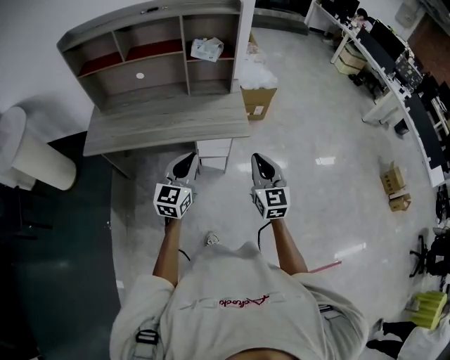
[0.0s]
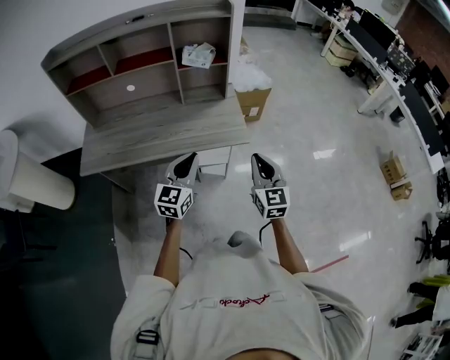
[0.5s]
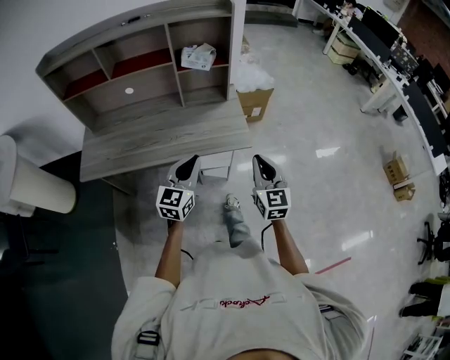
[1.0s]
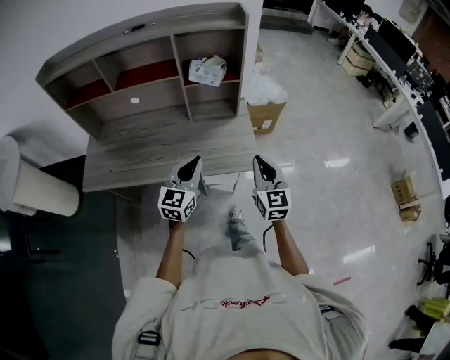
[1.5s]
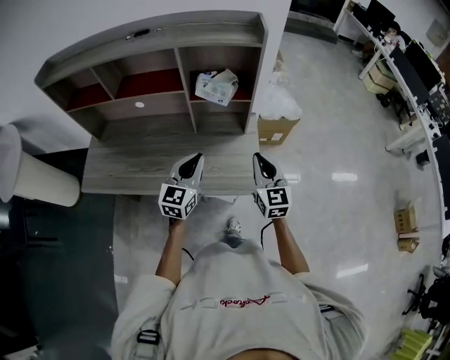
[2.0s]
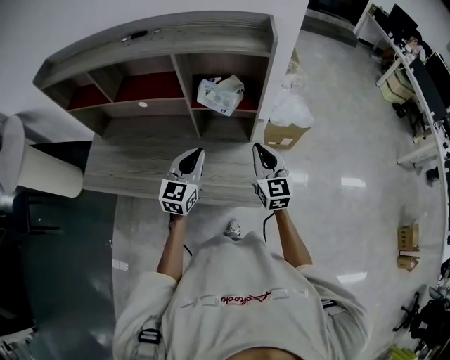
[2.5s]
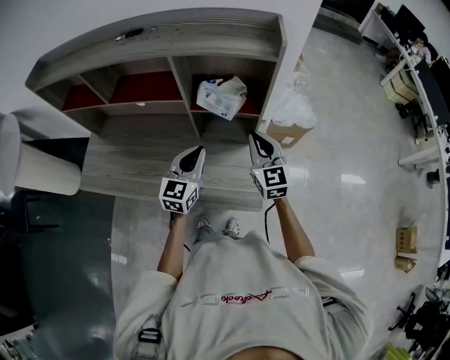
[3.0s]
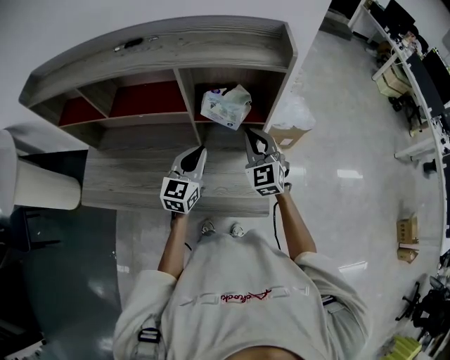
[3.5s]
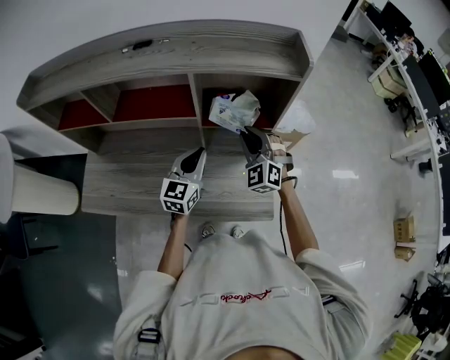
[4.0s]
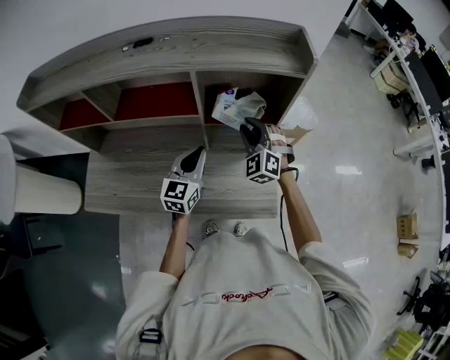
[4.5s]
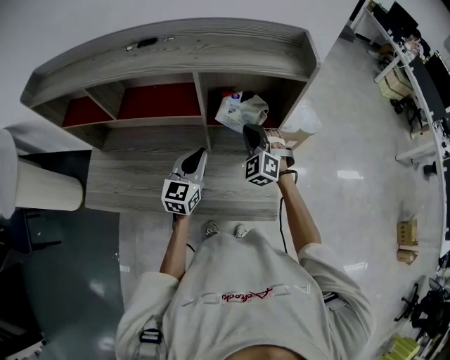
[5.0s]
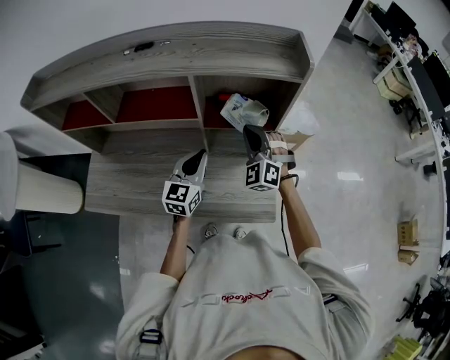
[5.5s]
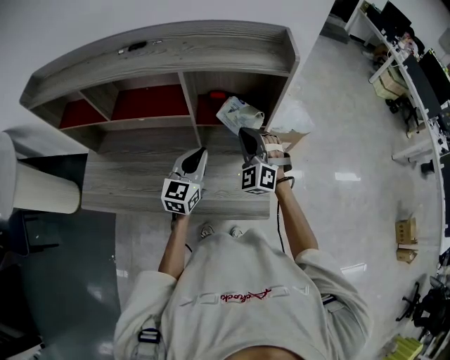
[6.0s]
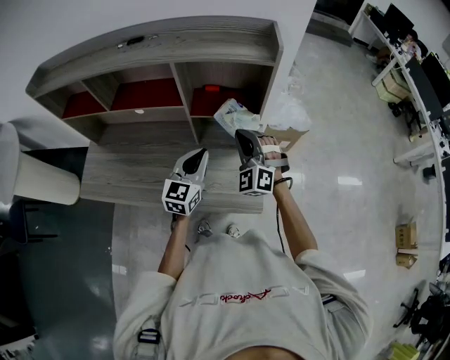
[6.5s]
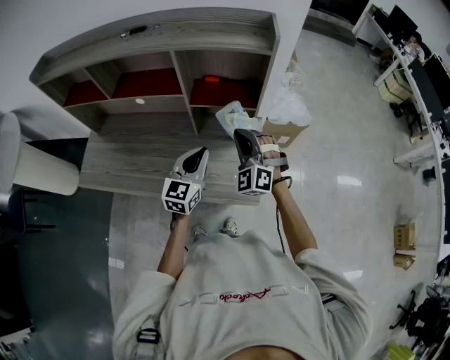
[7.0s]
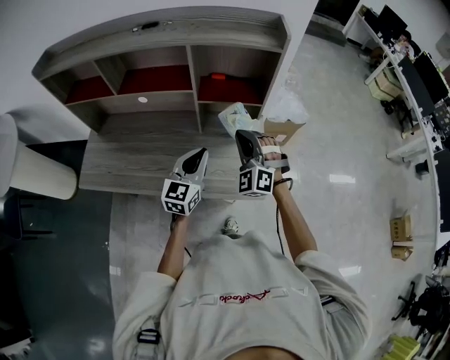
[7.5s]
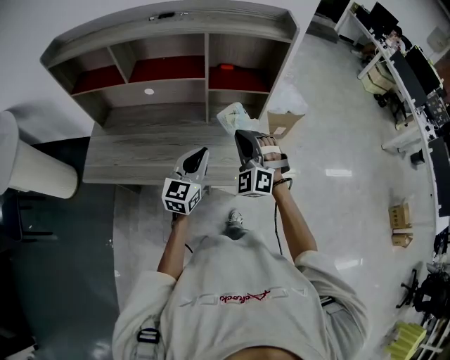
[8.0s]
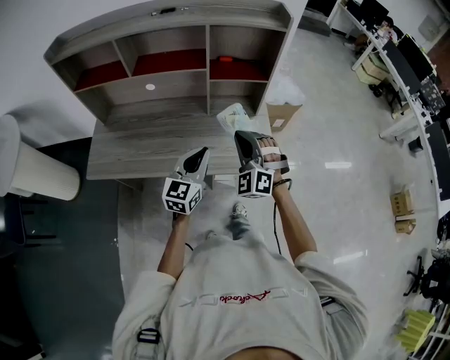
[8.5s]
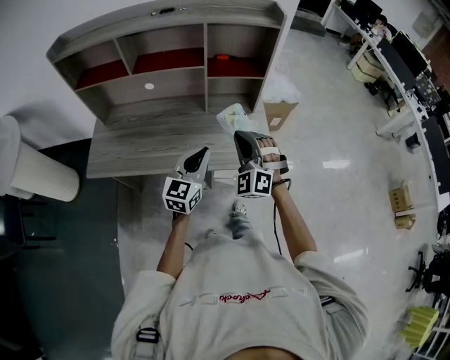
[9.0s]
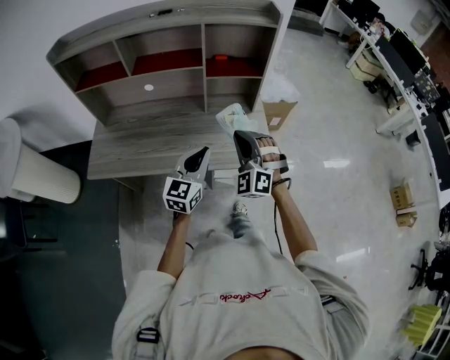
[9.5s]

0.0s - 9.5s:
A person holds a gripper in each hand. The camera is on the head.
0.0s - 2.0s: Both grippers travel together forward, some 30 cm.
2.0s - 4.0s: The left gripper travels forward by some 15 cm; the right gripper shifts some 25 cm forward and to the left, and twists approximately 50 degrees counterclockwise, seen from behind.
4.0s - 5.5s: The grippers stay close to where they were, moving slightly.
5.5s - 7.5s: The two grippers go about 10 cm backward.
7.5s - 9.5s: The grippers both shift backward by about 15 cm.

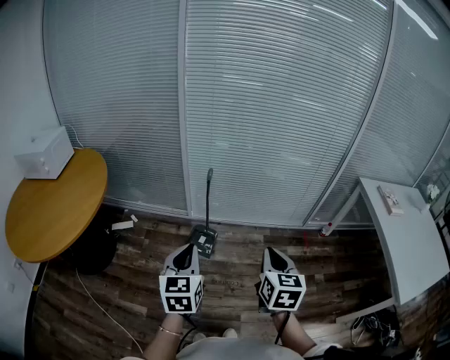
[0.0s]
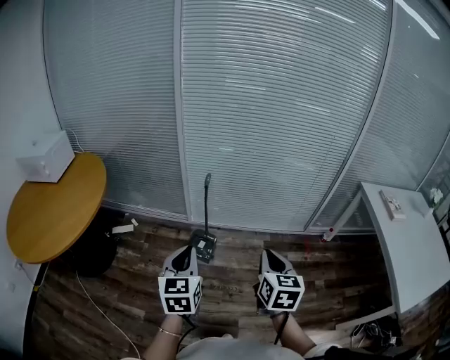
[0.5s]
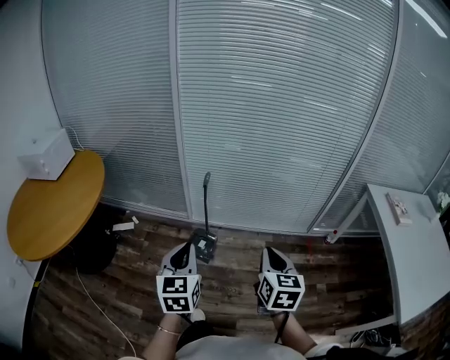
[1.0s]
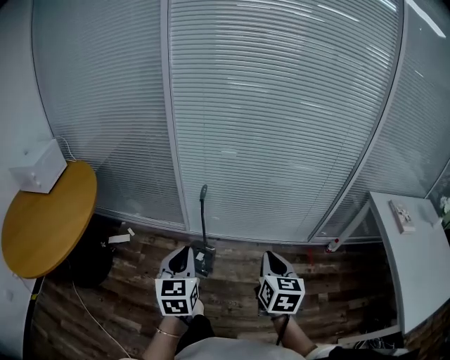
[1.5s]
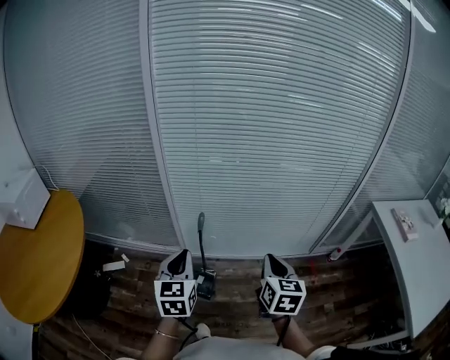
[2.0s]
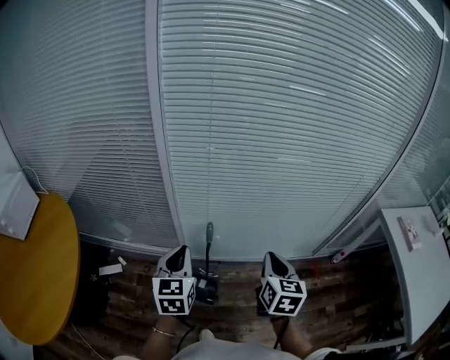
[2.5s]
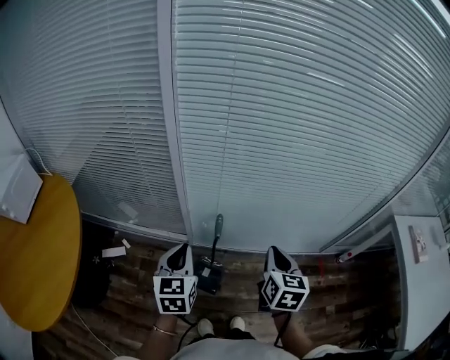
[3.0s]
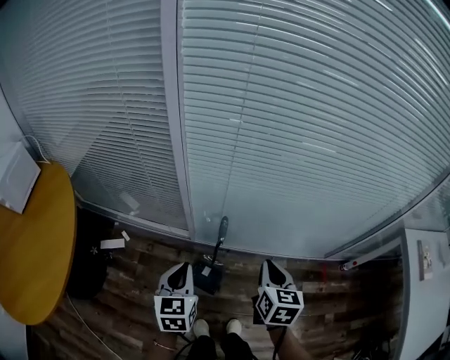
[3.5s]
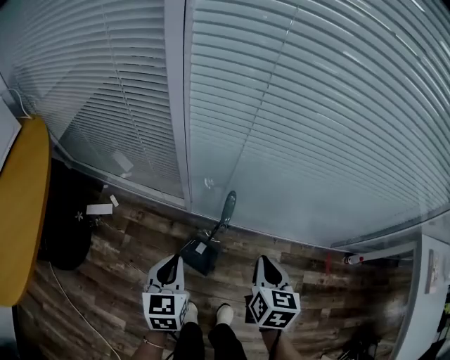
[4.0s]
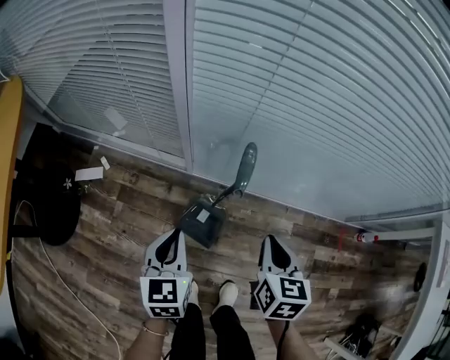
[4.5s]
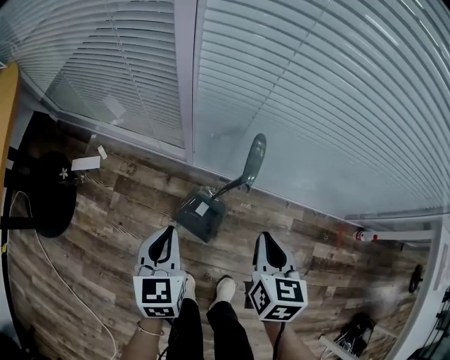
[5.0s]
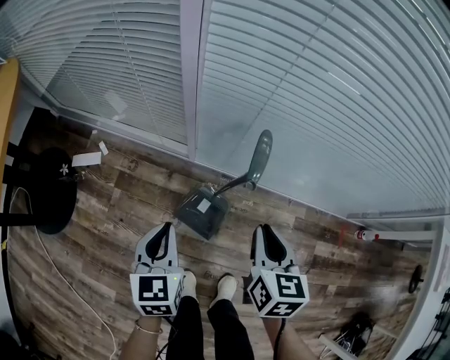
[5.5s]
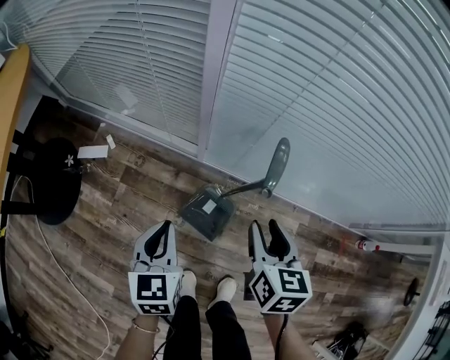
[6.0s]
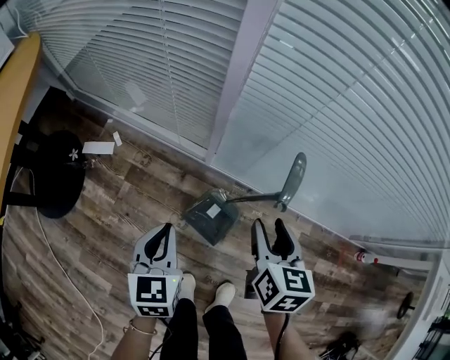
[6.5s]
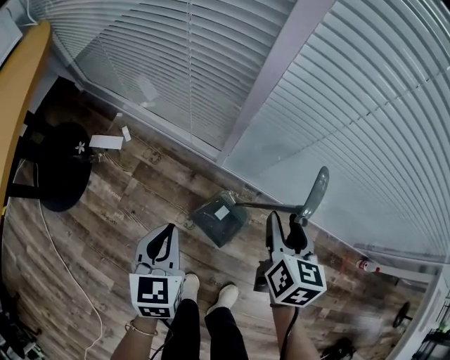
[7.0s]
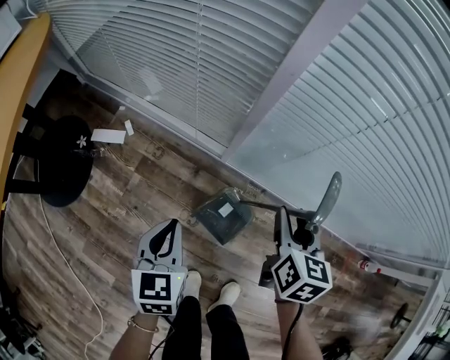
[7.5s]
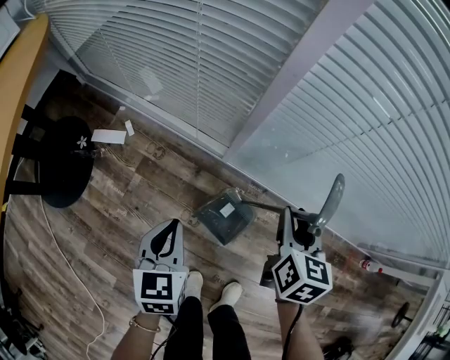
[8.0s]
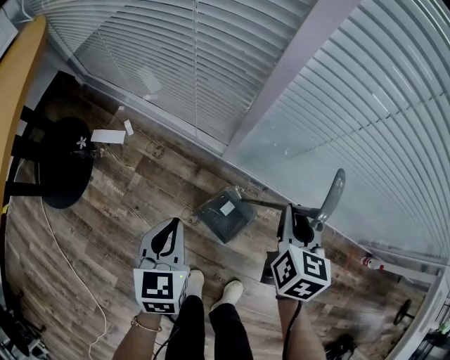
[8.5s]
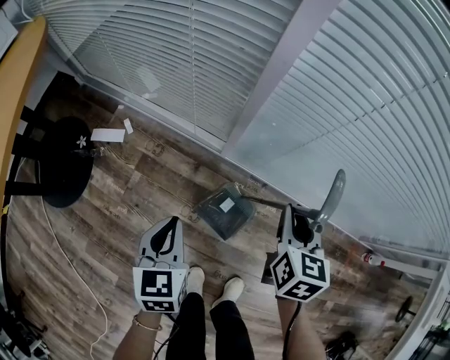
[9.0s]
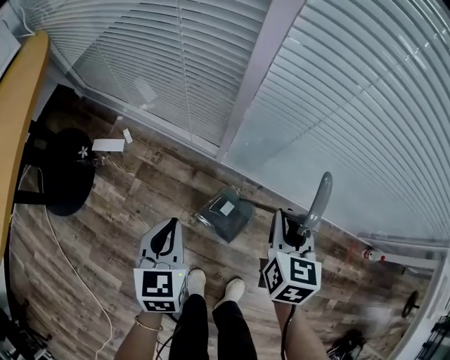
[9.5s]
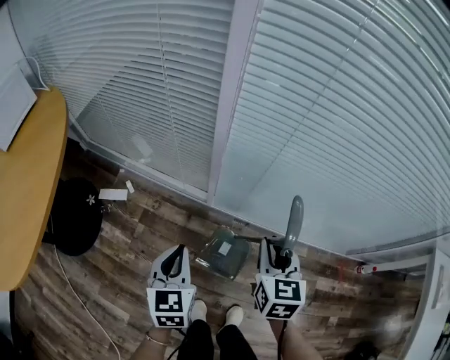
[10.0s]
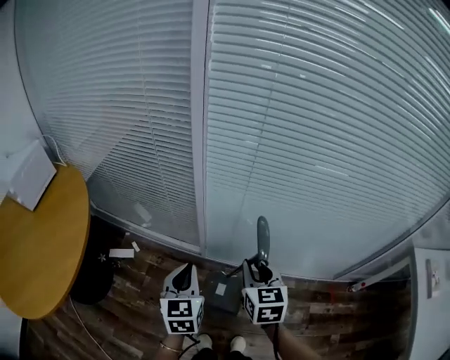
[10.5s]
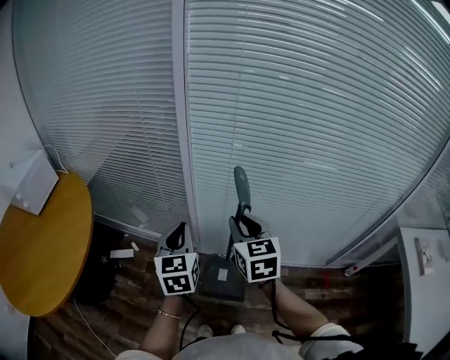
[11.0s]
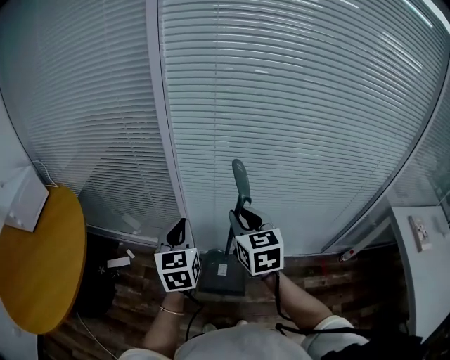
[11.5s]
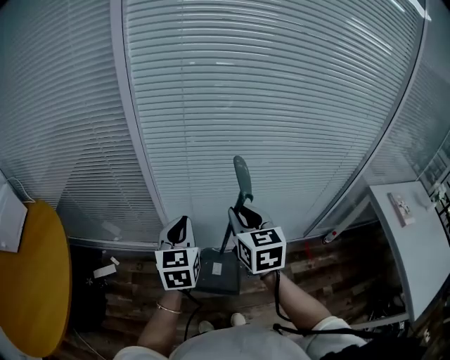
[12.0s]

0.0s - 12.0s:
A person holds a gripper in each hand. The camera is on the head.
0.0s - 2.0s: The grippers both shift forward by approximately 25 cm.
2.0s - 4.0s: The left gripper travels downward by roughly 25 cm, while the right gripper moves downward, forward and to the left, roughly 25 cm.
4.0s - 6.0s: Both grippers travel together downward and to the left, about 10 cm. The right gripper opens up.
6.0s - 8.0s: The right gripper moves forward, approximately 10 cm; the left gripper travels to the left by roughly 5 cm.
8.0s - 10.0s: The right gripper is displaced upward and backward by some 10 cm; the left gripper goes approximately 10 cm upward.
10.0s - 12.0s: The left gripper is displaced upward and to the right by about 30 cm, and turns by approximately 30 degrees, while the right gripper heads upward, covering about 30 cm.

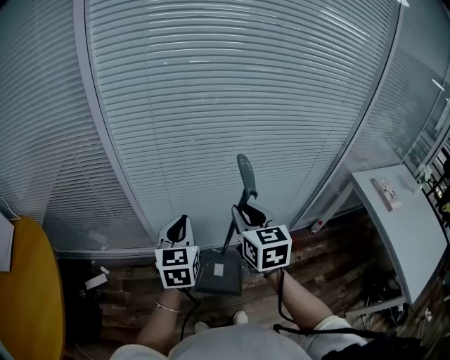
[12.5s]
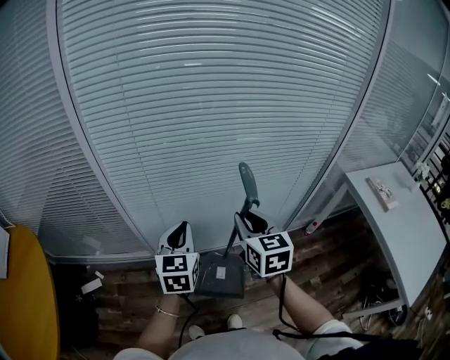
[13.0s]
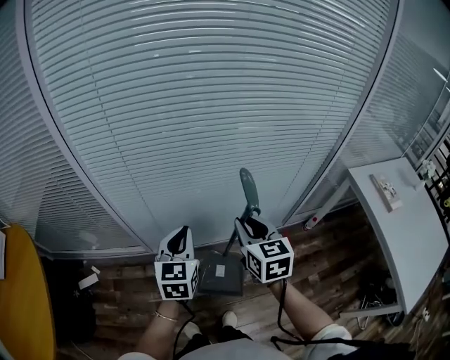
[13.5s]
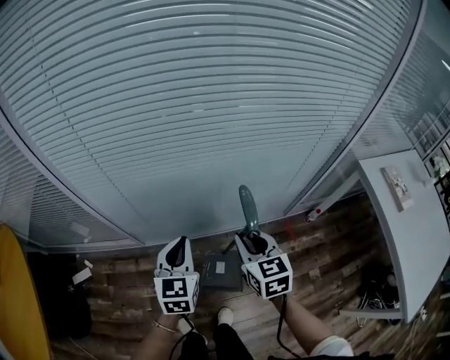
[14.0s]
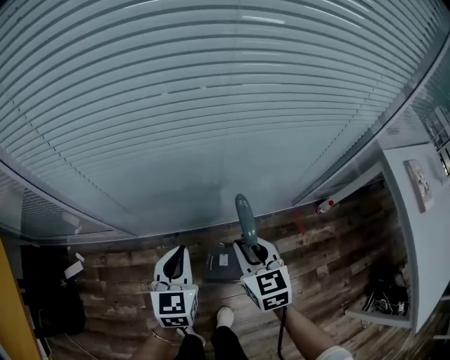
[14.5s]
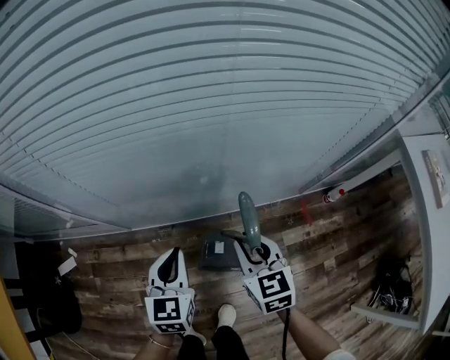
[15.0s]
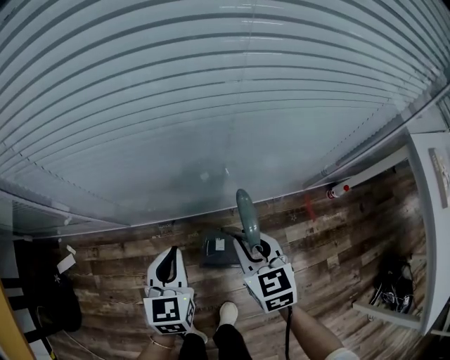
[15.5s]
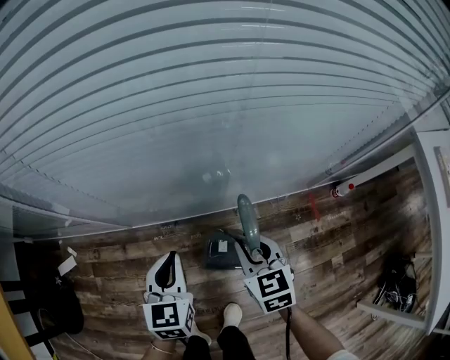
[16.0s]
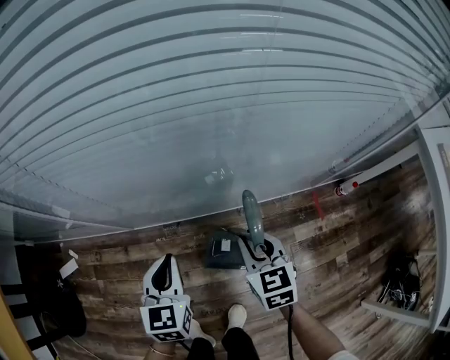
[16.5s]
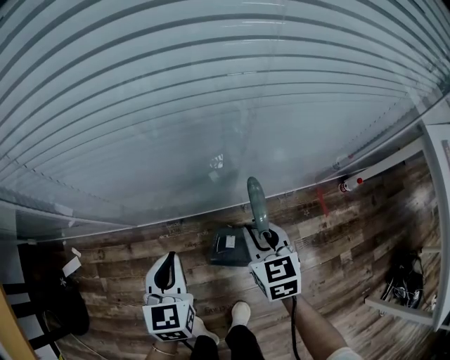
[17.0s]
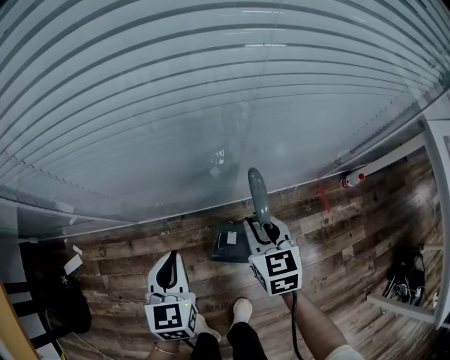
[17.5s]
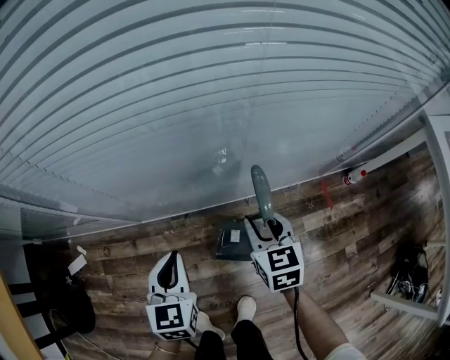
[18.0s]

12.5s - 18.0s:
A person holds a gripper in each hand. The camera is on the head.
12.5s - 14.5s: Both grippers move downward and to the right, approximately 25 cm.
14.5s - 16.0s: The two grippers go about 10 cm downward.
16.0s - 18.0s: The grippers stay close to where they were, moving slightly.
